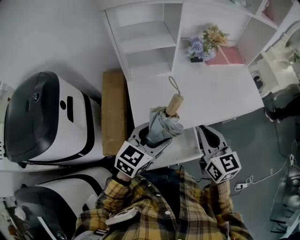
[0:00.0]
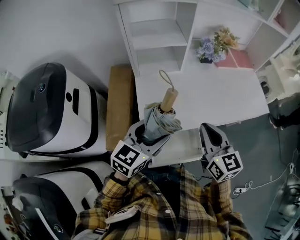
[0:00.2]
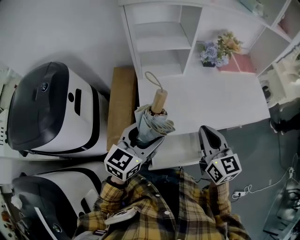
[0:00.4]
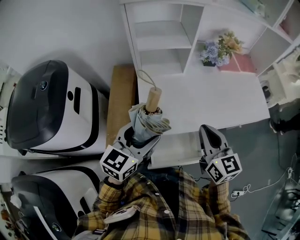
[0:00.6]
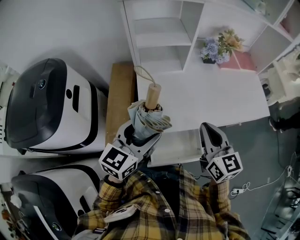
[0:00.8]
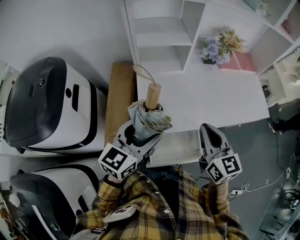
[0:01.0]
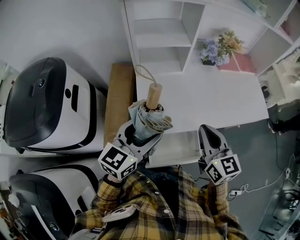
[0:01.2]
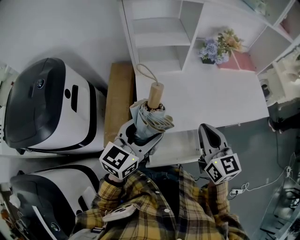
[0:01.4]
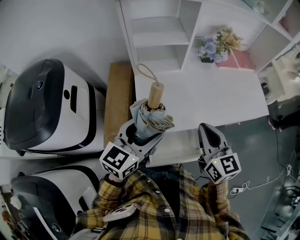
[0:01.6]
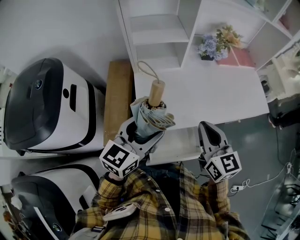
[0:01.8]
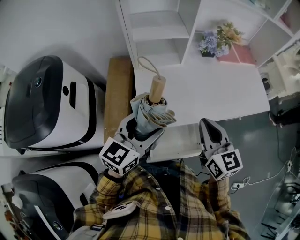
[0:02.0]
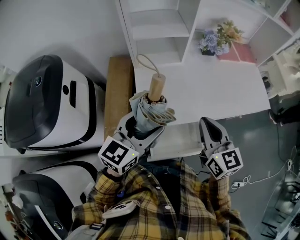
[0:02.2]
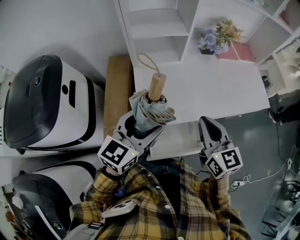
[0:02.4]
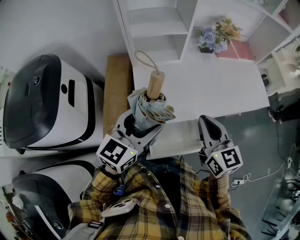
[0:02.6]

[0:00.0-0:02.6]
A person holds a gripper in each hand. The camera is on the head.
0:00.0 to 0:01.2: The left gripper travels to the left by some 5 cm.
0:01.2 to 0:02.6: Both grippers stay about where they are.

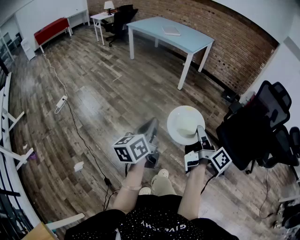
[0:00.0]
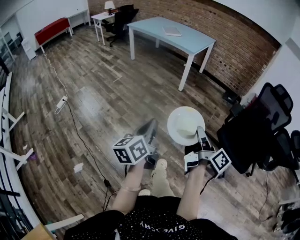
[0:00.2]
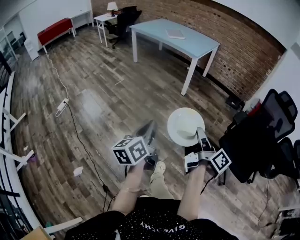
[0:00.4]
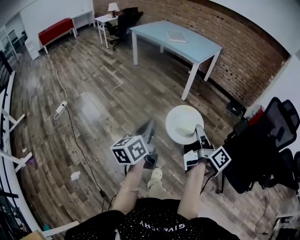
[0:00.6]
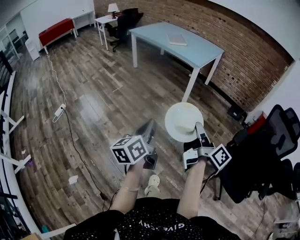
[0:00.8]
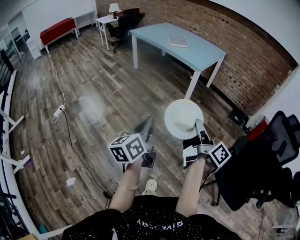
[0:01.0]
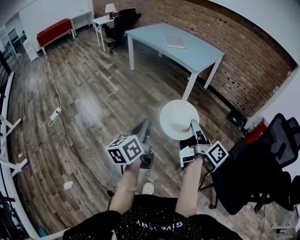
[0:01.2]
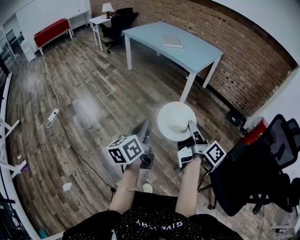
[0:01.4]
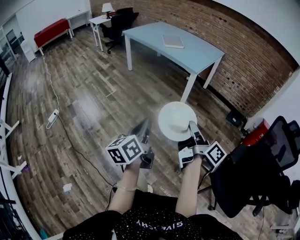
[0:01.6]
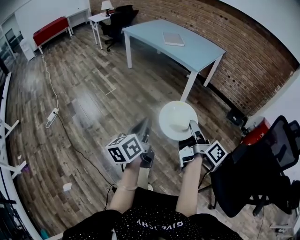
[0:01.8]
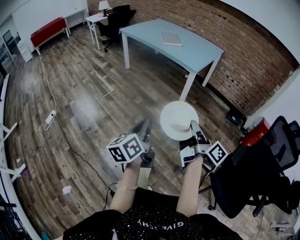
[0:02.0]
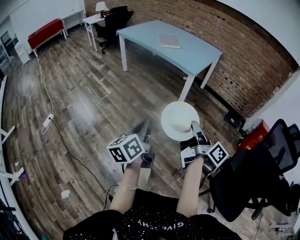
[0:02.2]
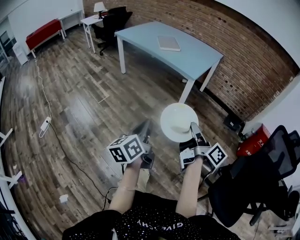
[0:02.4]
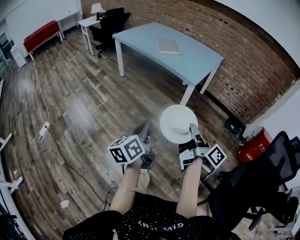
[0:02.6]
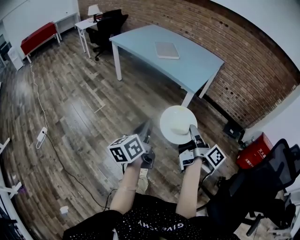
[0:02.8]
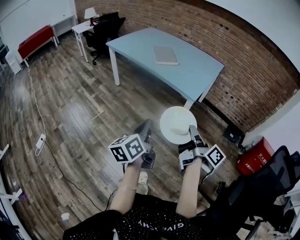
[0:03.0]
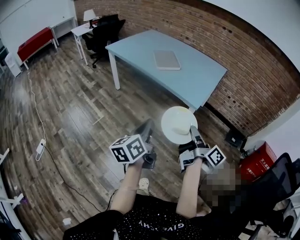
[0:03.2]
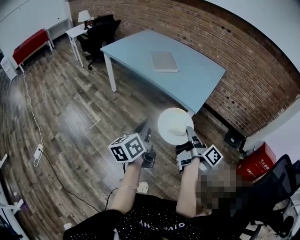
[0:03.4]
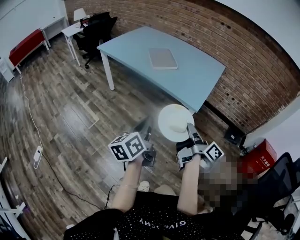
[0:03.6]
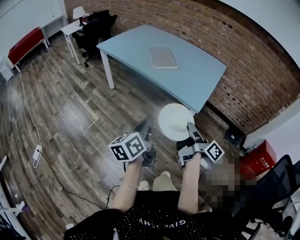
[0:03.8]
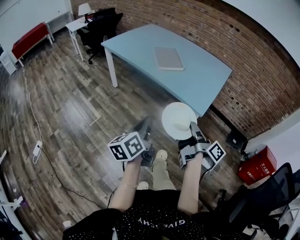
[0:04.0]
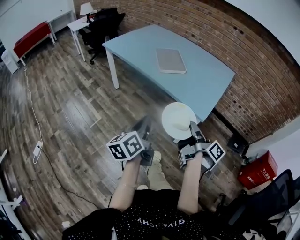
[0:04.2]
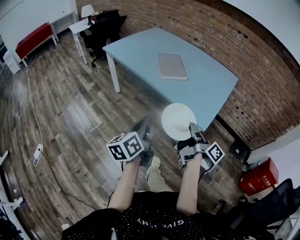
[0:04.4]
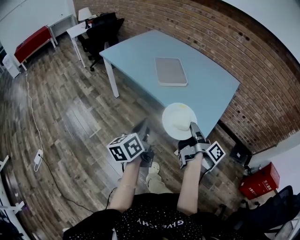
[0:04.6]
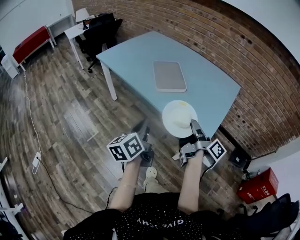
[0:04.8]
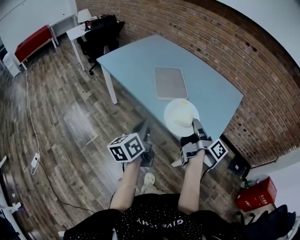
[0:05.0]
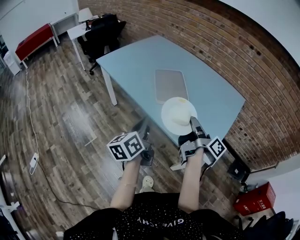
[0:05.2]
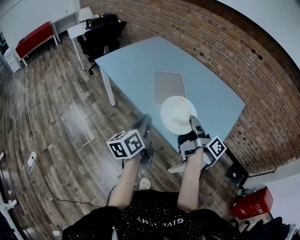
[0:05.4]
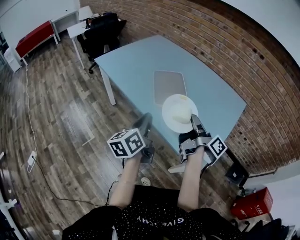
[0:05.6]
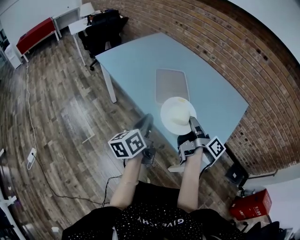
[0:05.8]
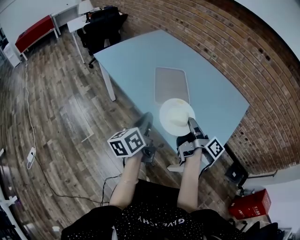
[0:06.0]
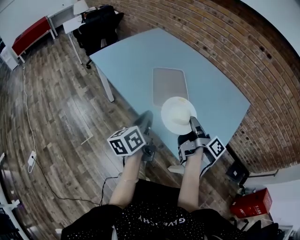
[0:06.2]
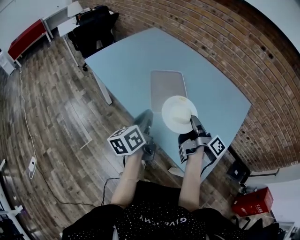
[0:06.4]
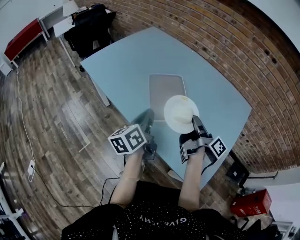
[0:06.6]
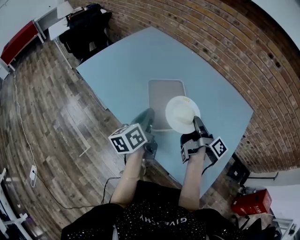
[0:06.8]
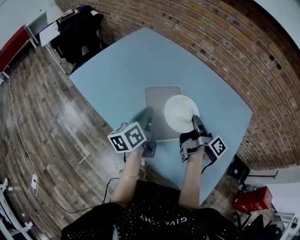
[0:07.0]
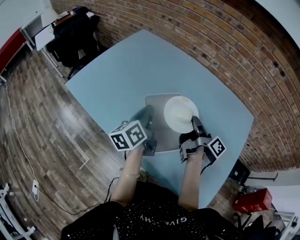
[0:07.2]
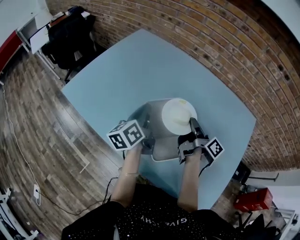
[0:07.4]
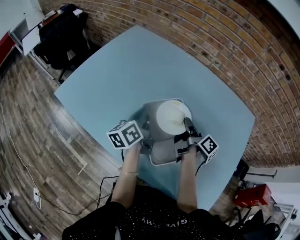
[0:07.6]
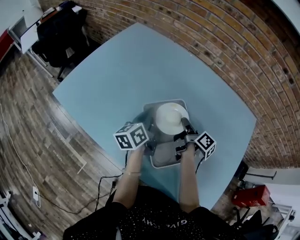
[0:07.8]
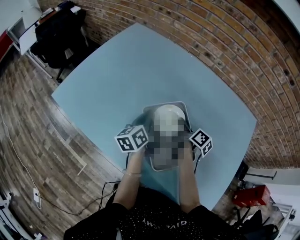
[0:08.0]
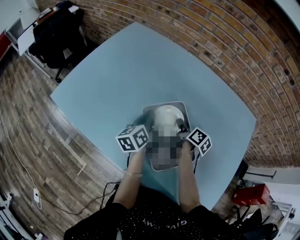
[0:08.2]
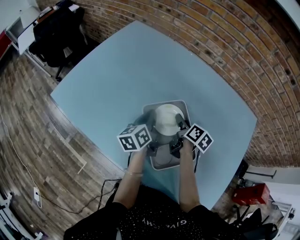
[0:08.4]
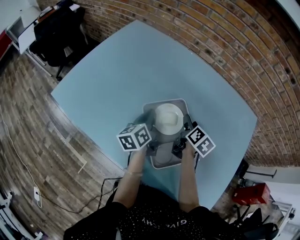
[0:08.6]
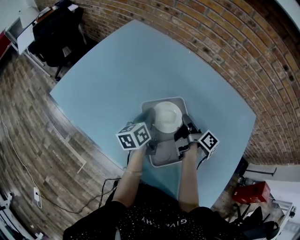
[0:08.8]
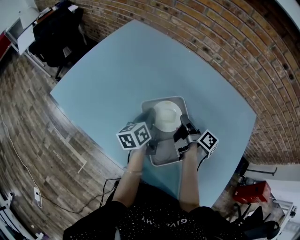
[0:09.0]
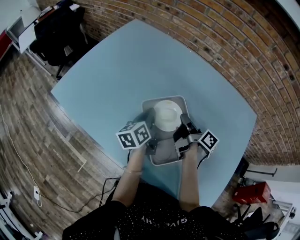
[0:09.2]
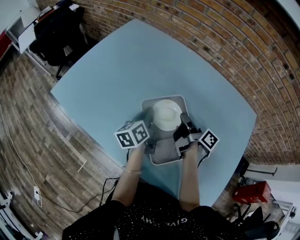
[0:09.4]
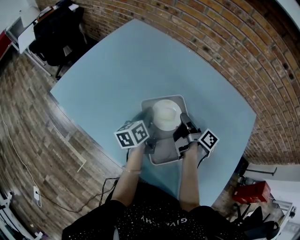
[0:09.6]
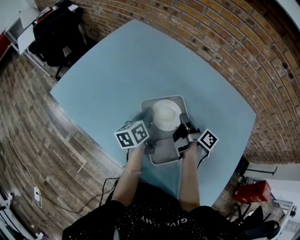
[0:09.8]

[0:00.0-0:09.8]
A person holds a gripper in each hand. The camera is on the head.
0:00.0 to 0:01.4: The left gripper shifts by some 40 cm.
0:01.4 to 0:02.8: The left gripper moves some 30 cm.
0:02.8 to 0:04.2: The left gripper ends up some 30 cm from where it was.
0:04.2 to 0:05.6: The left gripper moves roughly 35 cm.
0:05.6 to 0:07.0: The left gripper shifts by roughly 30 cm.
0:07.0 to 0:08.4: The left gripper ends up approximately 20 cm from where it was.

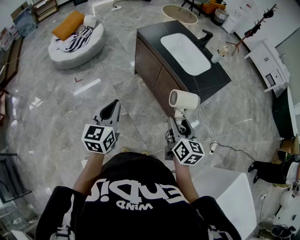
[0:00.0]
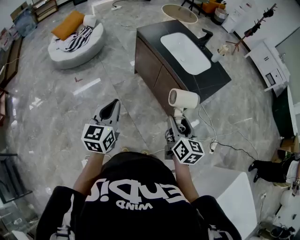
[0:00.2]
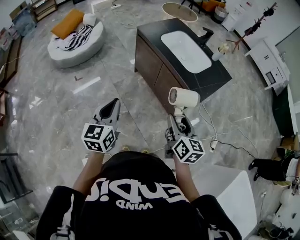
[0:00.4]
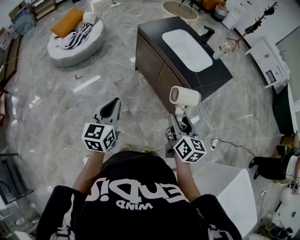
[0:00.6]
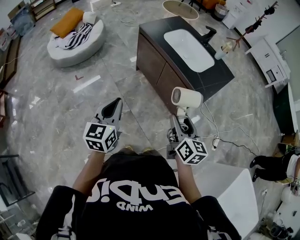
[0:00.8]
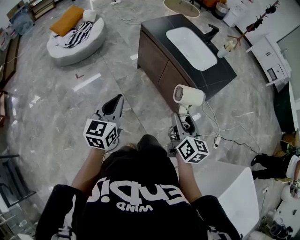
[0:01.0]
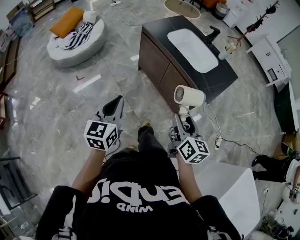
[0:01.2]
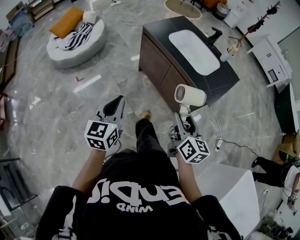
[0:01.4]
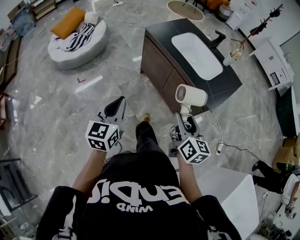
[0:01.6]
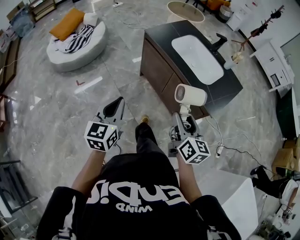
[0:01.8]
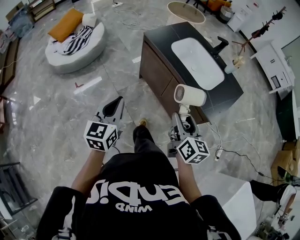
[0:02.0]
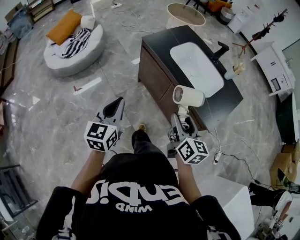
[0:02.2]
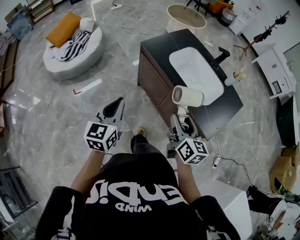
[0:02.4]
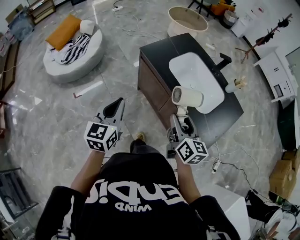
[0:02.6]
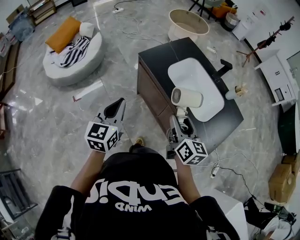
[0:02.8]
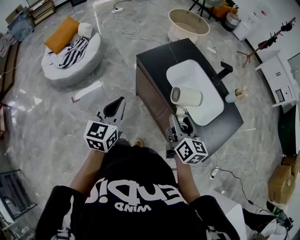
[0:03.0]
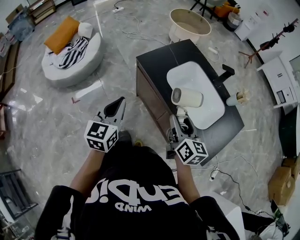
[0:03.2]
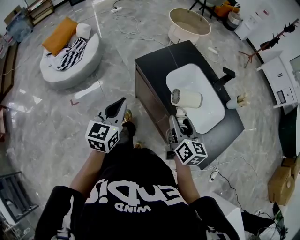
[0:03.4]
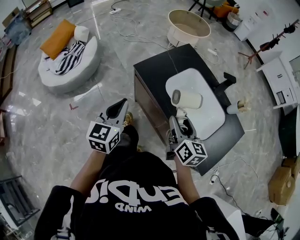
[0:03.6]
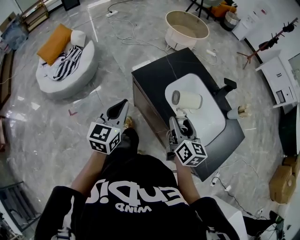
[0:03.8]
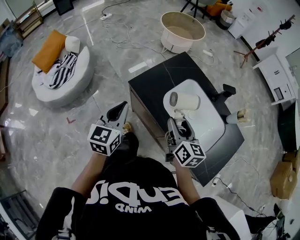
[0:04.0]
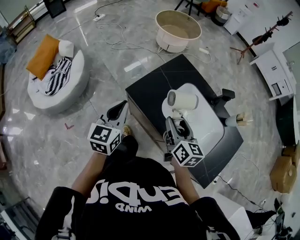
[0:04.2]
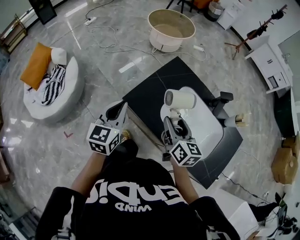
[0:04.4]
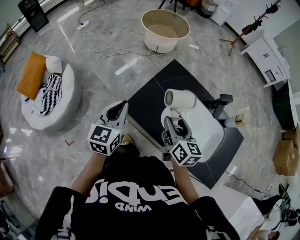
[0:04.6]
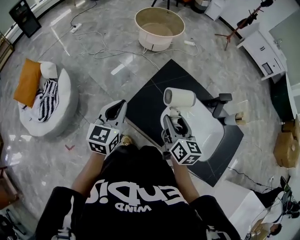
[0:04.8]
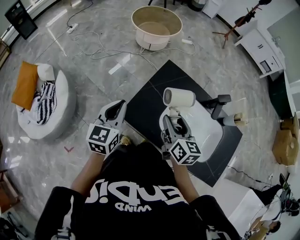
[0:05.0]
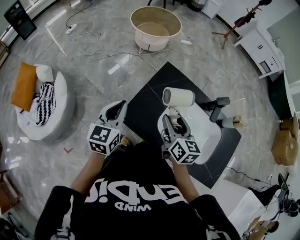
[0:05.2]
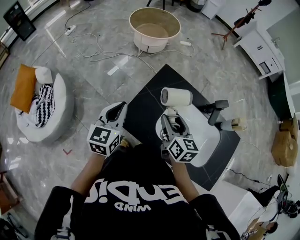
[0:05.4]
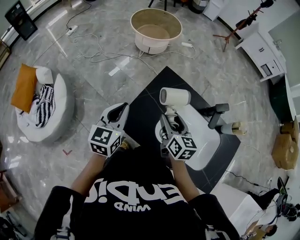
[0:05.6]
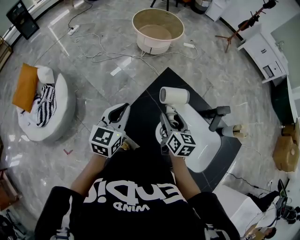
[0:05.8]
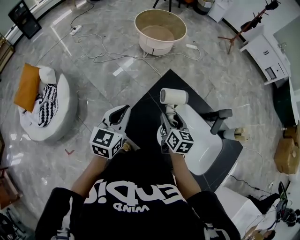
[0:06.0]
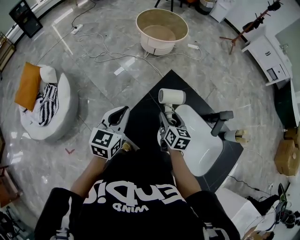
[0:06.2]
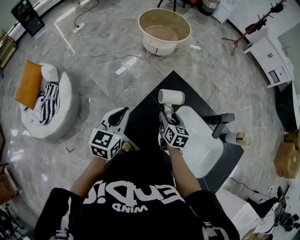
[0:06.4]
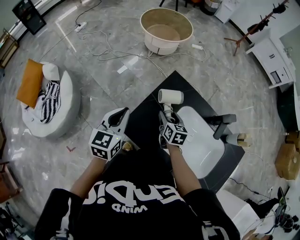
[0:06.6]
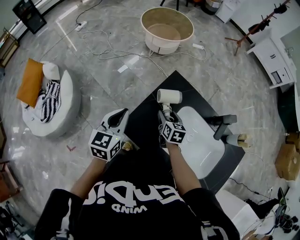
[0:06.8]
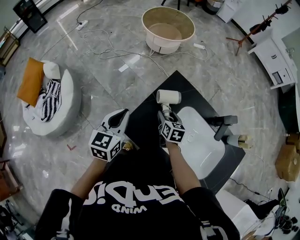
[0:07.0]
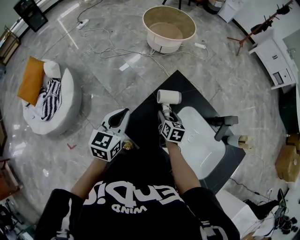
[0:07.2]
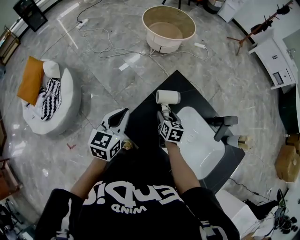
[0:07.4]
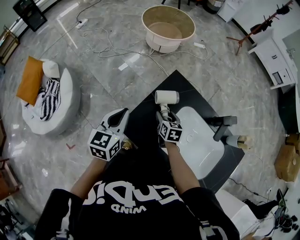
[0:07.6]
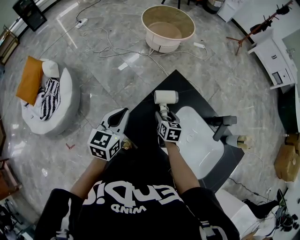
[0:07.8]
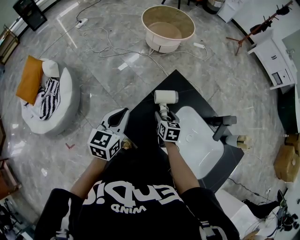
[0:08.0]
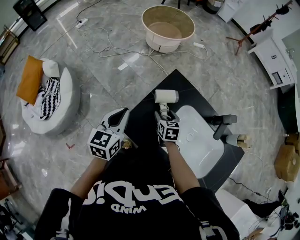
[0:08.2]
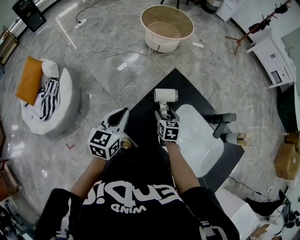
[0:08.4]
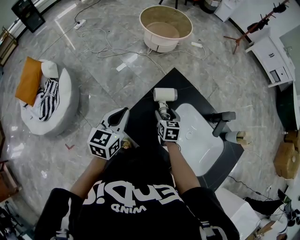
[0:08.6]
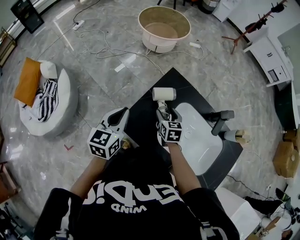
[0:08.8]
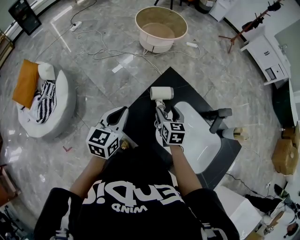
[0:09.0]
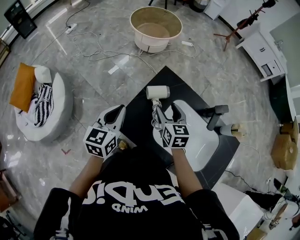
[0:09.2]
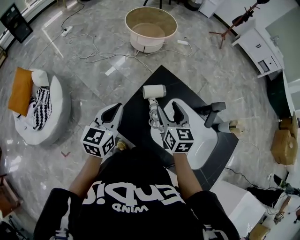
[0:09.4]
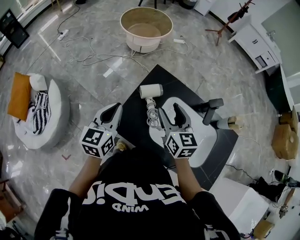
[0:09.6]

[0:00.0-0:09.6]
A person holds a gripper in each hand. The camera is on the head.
0:00.0 to 0:01.6: Both grippers travel together forward and to the left, roughly 10 cm.
0:01.6 to 0:03.2: The grippers both shift forward by approximately 30 cm.
0:03.2 to 0:04.8: Both grippers move forward, some 30 cm.
0:04.8 to 0:06.4: The right gripper travels downward and forward by some 20 cm. Meanwhile the left gripper shifts about 10 cm forward.
0:06.4 to 0:08.0: The right gripper moves downward, roughly 5 cm.
0:08.0 to 0:09.6: The right gripper shifts roughly 20 cm upward, and rotates approximately 30 degrees.

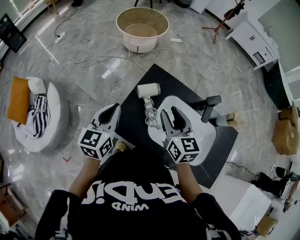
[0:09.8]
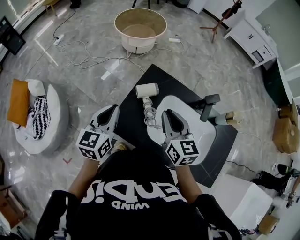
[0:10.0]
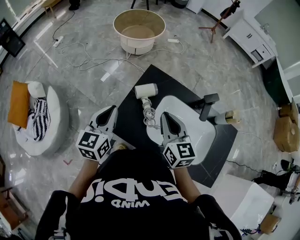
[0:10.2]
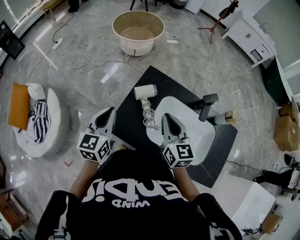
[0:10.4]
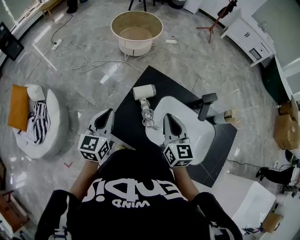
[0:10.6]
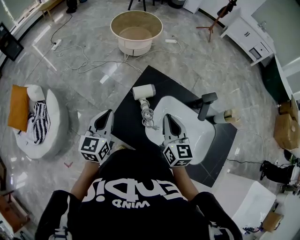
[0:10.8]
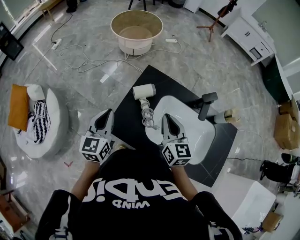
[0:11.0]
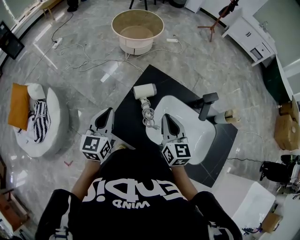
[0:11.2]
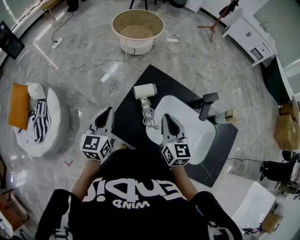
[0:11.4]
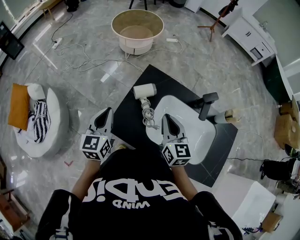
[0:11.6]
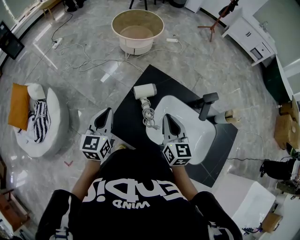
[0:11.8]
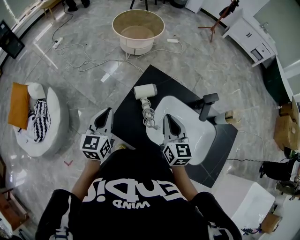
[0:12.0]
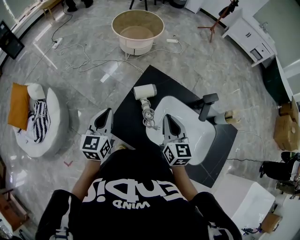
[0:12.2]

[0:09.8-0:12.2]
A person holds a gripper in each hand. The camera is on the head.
0:09.8 to 0:11.0: The right gripper closes its fingers.
0:11.0 to 0:12.2: The two grippers keep their place.
